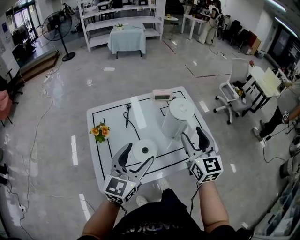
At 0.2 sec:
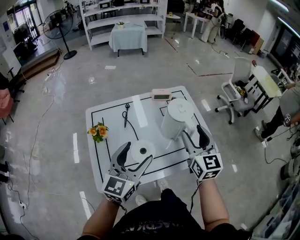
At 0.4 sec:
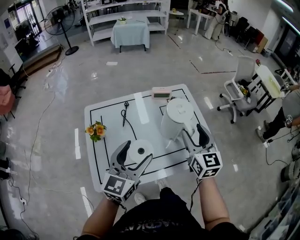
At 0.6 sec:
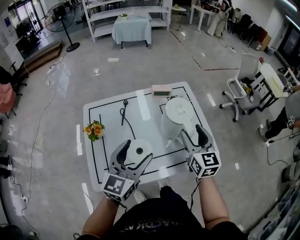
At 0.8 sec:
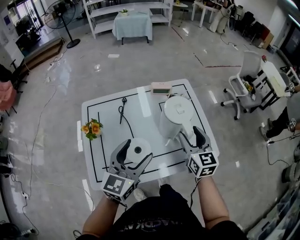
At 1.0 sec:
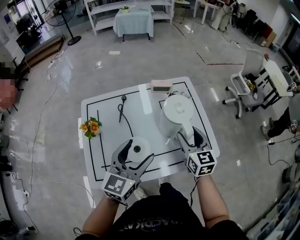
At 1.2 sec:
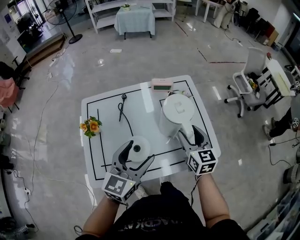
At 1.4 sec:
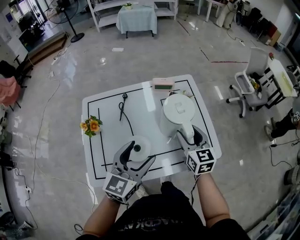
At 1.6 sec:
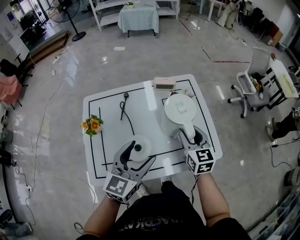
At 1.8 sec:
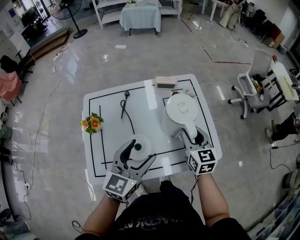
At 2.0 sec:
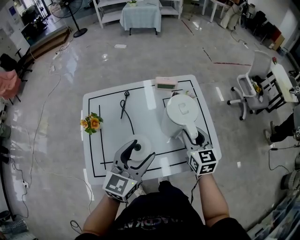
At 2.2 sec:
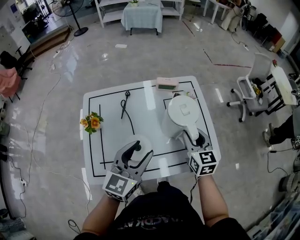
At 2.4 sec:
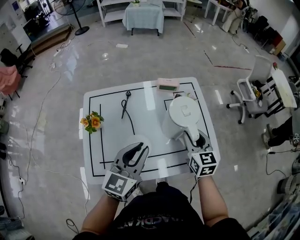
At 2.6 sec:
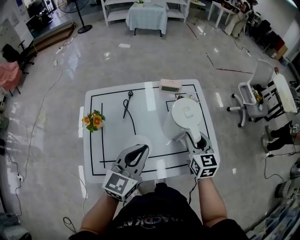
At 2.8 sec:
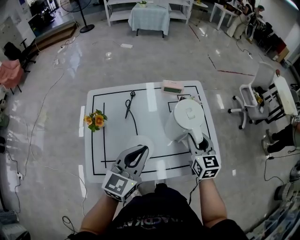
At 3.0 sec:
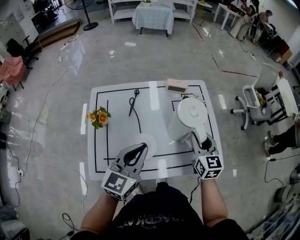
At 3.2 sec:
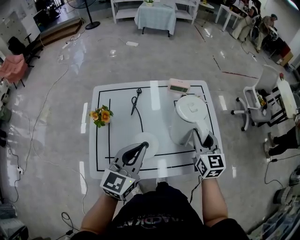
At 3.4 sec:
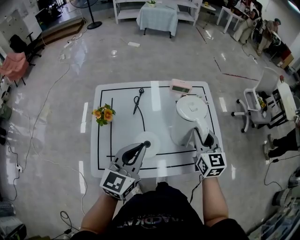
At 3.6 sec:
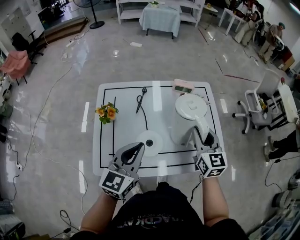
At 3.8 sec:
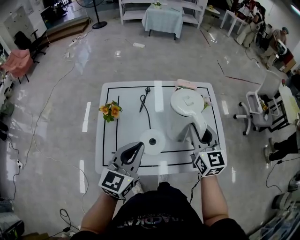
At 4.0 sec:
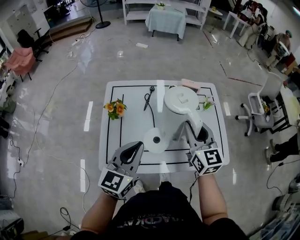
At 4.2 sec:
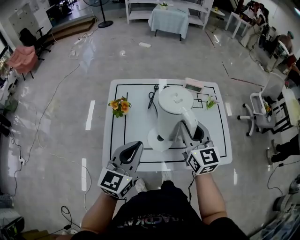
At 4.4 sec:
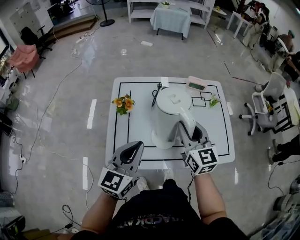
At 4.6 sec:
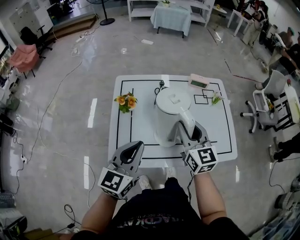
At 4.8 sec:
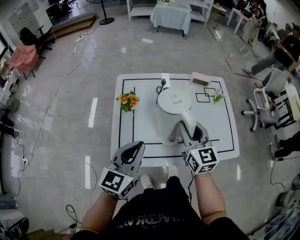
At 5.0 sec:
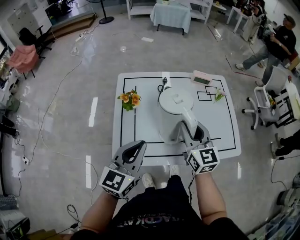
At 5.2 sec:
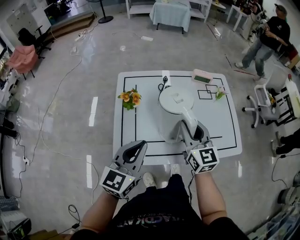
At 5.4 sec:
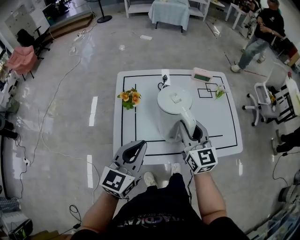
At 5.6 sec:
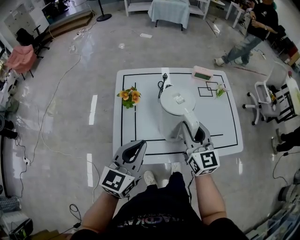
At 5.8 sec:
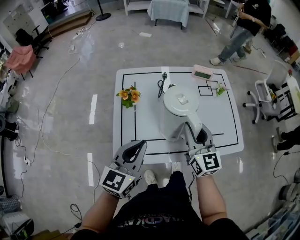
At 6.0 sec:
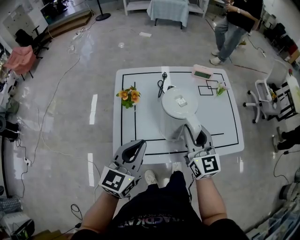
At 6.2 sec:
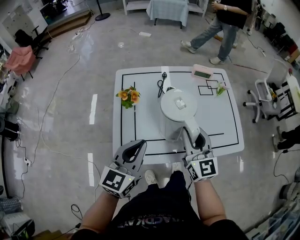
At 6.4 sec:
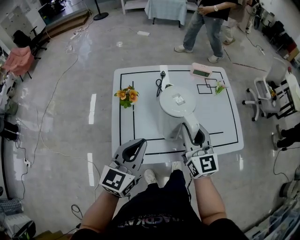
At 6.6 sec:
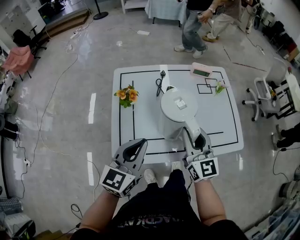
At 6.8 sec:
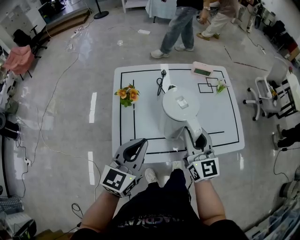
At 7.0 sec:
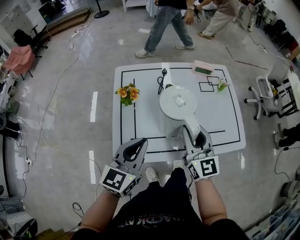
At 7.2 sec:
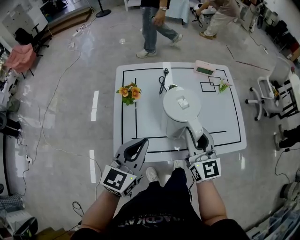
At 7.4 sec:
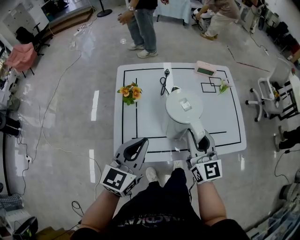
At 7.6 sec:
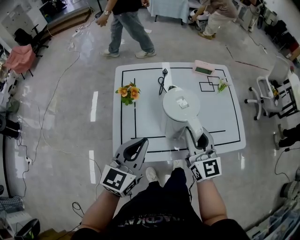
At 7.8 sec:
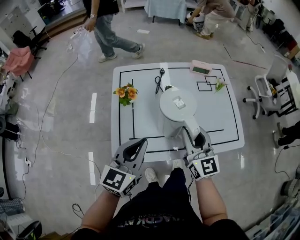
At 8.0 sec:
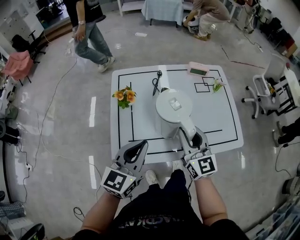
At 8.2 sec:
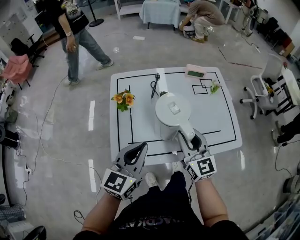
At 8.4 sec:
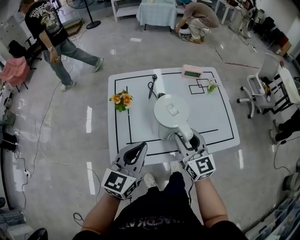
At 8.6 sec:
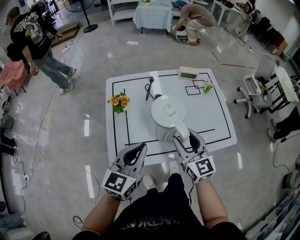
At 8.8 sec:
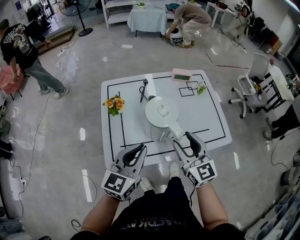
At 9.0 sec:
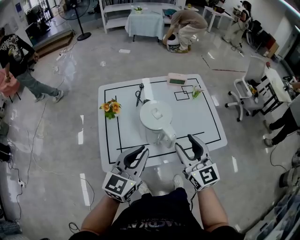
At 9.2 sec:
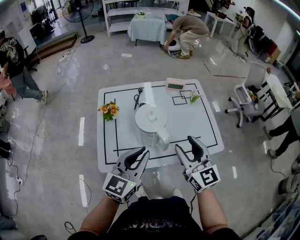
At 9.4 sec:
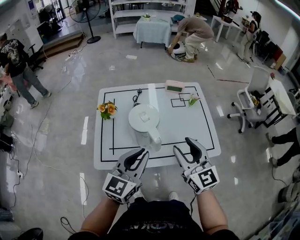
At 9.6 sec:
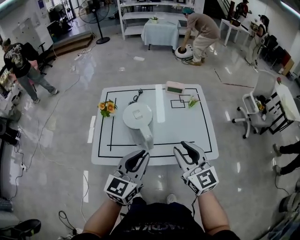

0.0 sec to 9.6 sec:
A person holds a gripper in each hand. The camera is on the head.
0.0 sec to 1.6 sec: The left gripper moves to the right, forward and downward, approximately 10 cm, while the right gripper is displaced downward and forward by about 15 cm.
1.6 sec to 3.2 sec: The left gripper moves to the left, approximately 5 cm, and closes.
3.2 sec to 4.8 sec: The left gripper is displaced to the left and backward by approximately 15 cm. The right gripper heads to the left, covering approximately 20 cm.
4.8 sec to 8.0 sec: The grippers move only a little.
8.0 sec to 9.6 sec: The left gripper travels to the right by some 15 cm, while the right gripper is displaced to the right, backward and upward by roughly 20 cm.

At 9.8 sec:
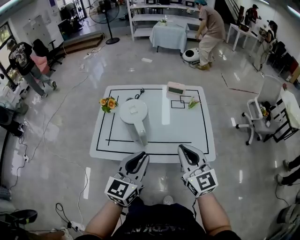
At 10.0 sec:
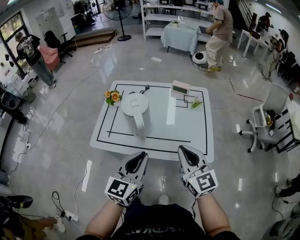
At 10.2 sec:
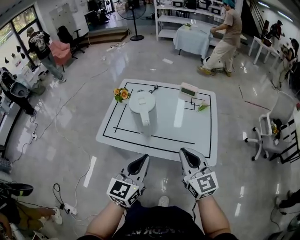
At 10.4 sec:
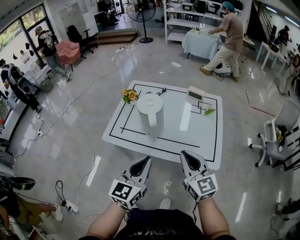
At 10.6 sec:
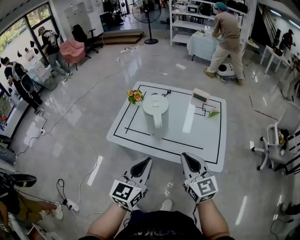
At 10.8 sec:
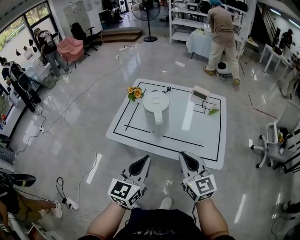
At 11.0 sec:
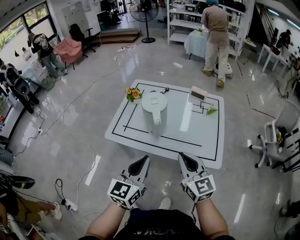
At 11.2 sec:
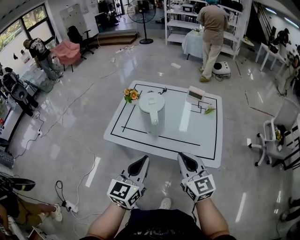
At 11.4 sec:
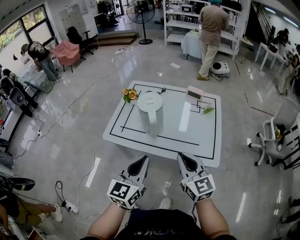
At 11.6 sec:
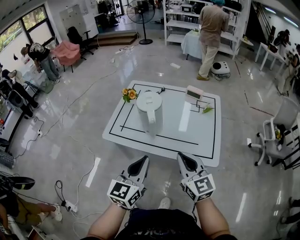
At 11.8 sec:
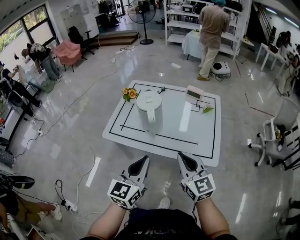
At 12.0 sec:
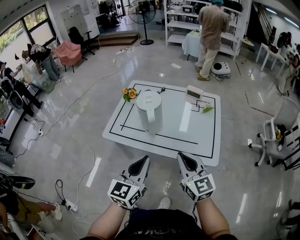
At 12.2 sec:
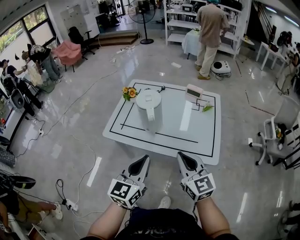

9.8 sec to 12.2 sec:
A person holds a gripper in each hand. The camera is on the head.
9.8 sec to 11.0 sec: Both grippers move backward, about 5 cm.
11.0 sec to 12.2 sec: The grippers make only small movements.

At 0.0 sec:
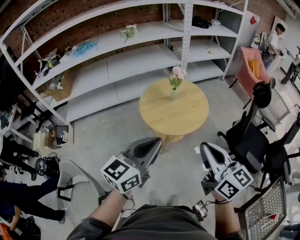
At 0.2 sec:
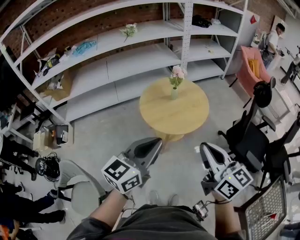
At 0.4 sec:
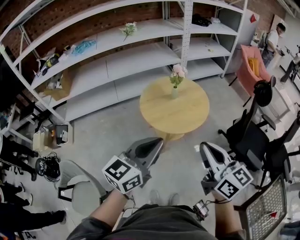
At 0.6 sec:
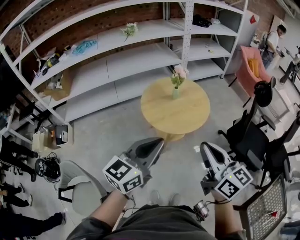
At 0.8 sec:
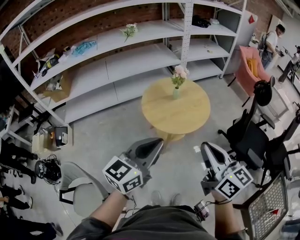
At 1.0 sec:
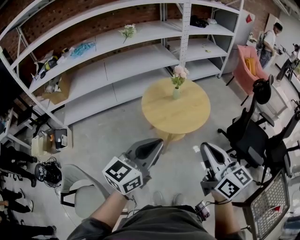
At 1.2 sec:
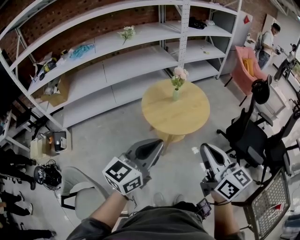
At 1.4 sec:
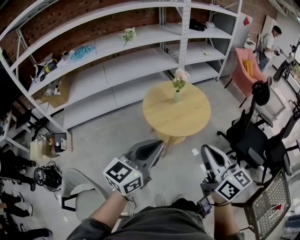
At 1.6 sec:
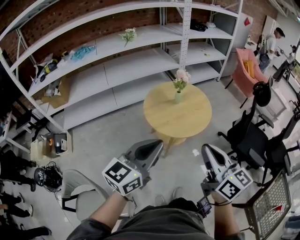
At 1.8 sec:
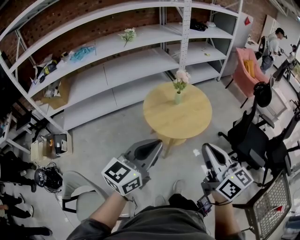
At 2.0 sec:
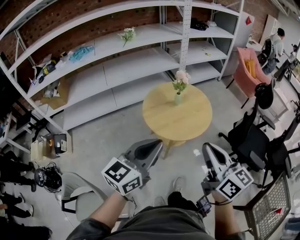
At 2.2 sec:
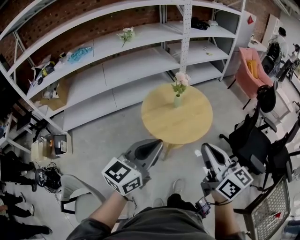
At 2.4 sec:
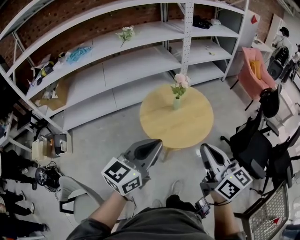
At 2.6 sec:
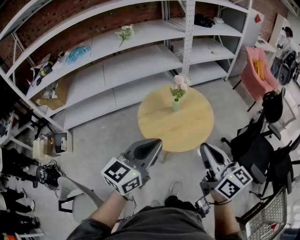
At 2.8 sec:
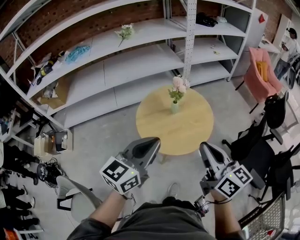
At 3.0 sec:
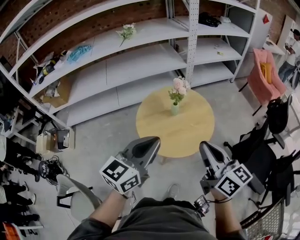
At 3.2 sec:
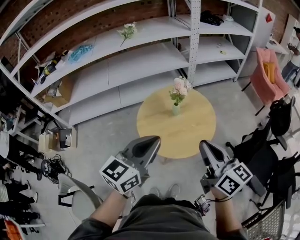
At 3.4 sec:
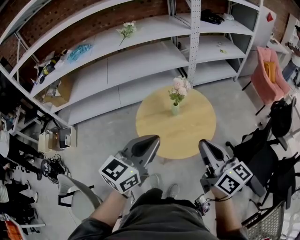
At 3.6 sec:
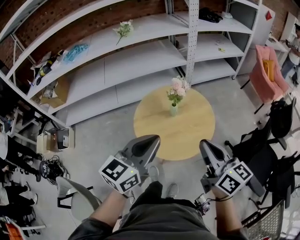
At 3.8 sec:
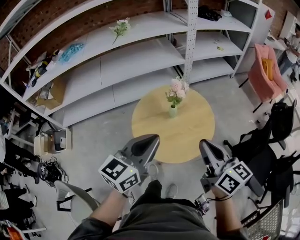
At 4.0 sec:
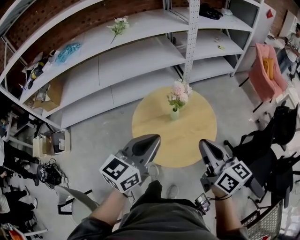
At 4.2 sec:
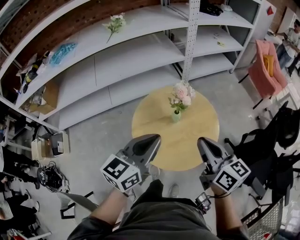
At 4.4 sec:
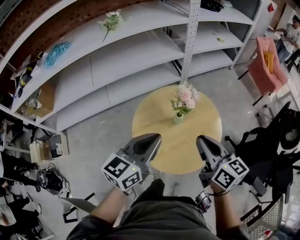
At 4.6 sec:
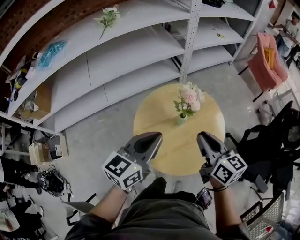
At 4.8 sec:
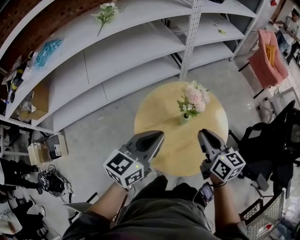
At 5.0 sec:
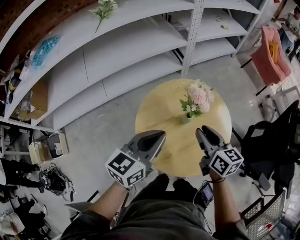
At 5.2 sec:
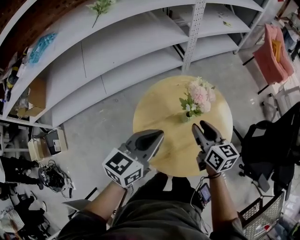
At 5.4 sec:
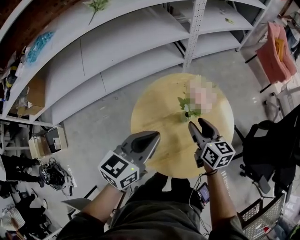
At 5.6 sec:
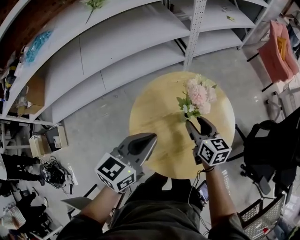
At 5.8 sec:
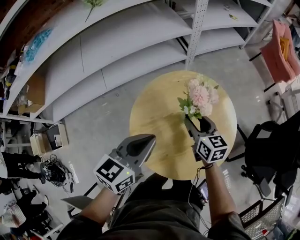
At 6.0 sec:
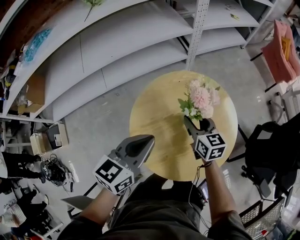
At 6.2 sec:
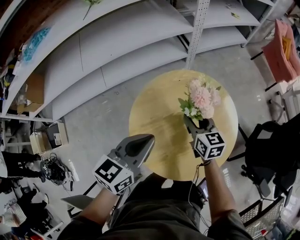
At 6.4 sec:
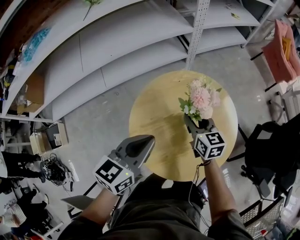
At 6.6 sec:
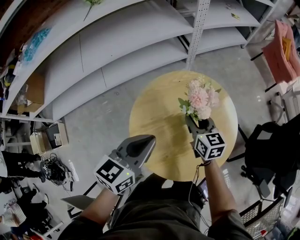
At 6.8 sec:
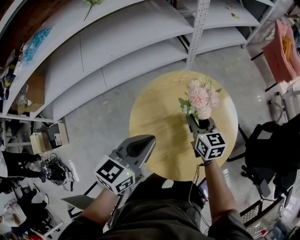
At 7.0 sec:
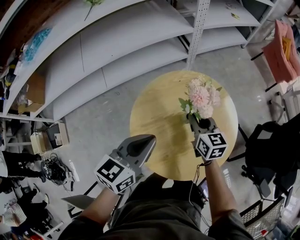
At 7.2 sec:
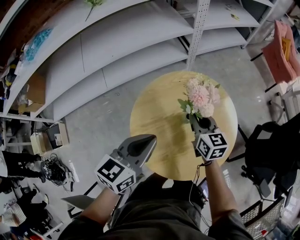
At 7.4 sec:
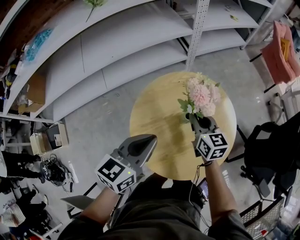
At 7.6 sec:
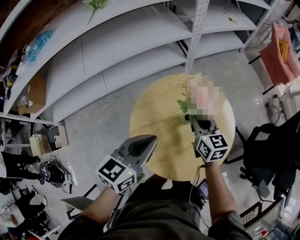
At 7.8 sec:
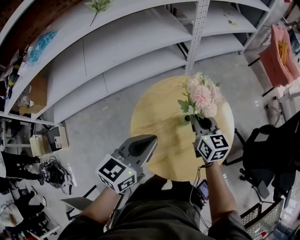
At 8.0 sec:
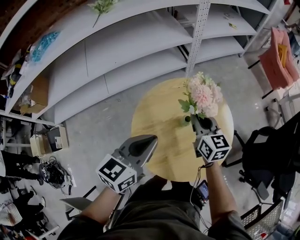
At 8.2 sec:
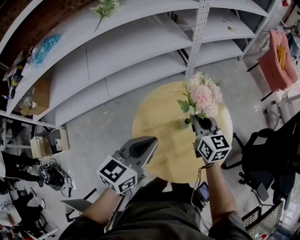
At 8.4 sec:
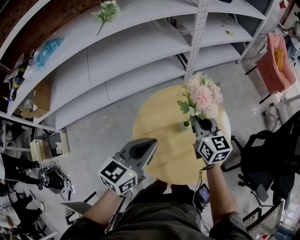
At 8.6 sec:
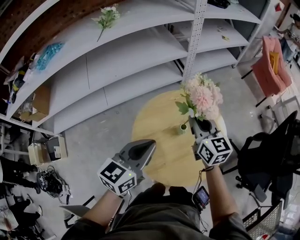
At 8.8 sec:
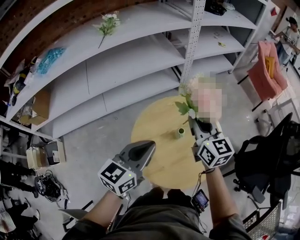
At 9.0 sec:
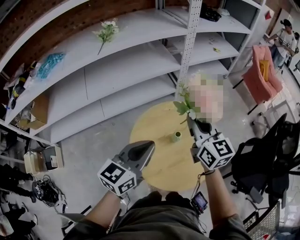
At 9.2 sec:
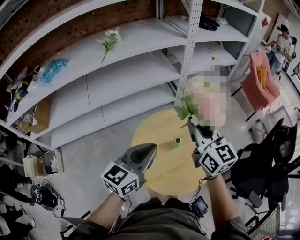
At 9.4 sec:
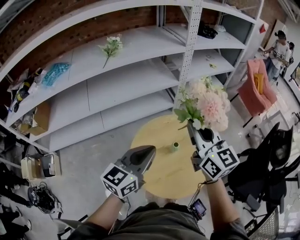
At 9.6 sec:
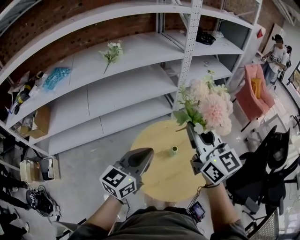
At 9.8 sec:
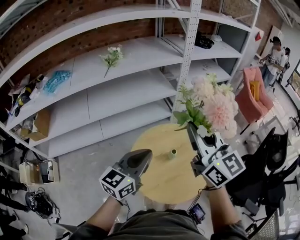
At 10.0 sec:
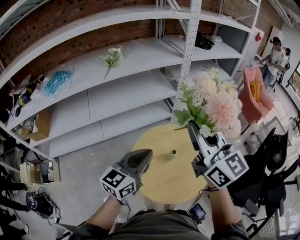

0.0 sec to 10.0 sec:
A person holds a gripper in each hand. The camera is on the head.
0.0 sec to 1.4 sec: Both grippers travel together to the left, about 5 cm.
1.4 sec to 2.8 sec: The two grippers go about 20 cm forward.
2.8 sec to 4.2 sec: The two grippers go about 20 cm forward.
4.2 sec to 5.8 sec: The right gripper shifts approximately 30 cm downward and forward, and opens. Meanwhile the left gripper moves downward, forward and to the left, approximately 20 cm.
5.8 sec to 7.2 sec: The right gripper closes up.
7.2 sec to 8.6 sec: The right gripper goes approximately 15 cm upward. Meanwhile the left gripper shifts approximately 5 cm upward.
8.6 sec to 10.0 sec: The right gripper is displaced upward by about 30 cm, and rotates roughly 20 degrees. Meanwhile the left gripper travels upward by about 10 cm.

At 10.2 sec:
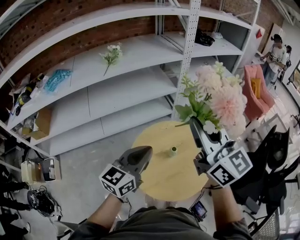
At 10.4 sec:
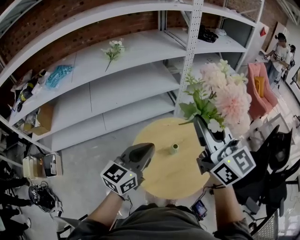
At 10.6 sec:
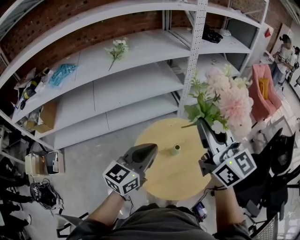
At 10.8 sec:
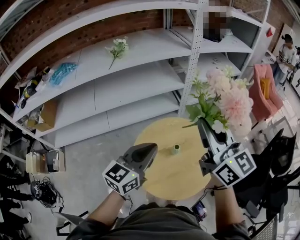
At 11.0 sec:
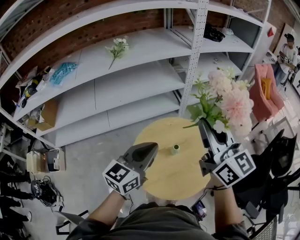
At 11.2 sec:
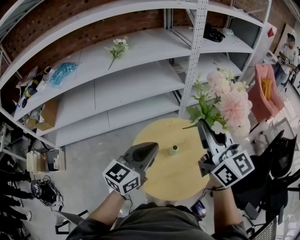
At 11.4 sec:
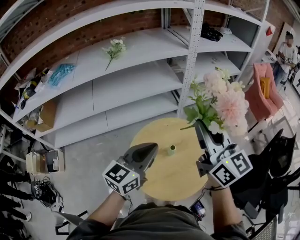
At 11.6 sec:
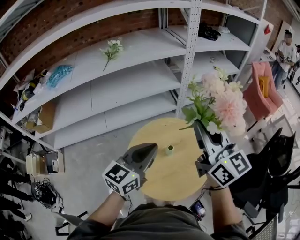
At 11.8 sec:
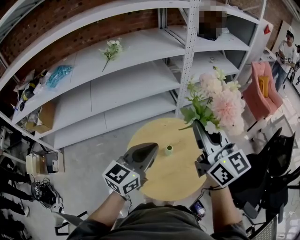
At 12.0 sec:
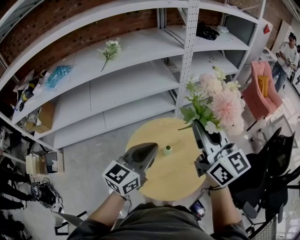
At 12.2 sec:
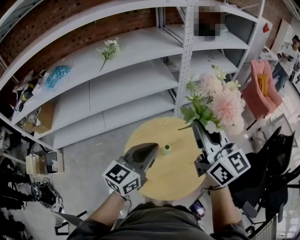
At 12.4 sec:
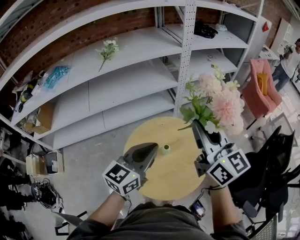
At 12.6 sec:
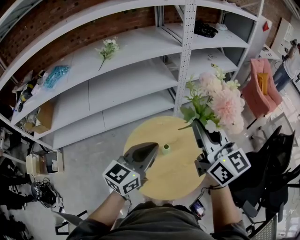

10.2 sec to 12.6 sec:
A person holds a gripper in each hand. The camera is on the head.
10.2 sec to 11.4 sec: The two grippers go about 5 cm to the right.
11.4 sec to 12.6 sec: There are only small adjustments of the grippers.
